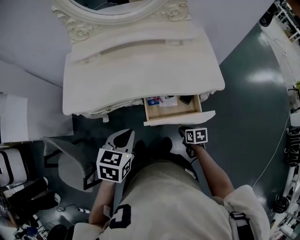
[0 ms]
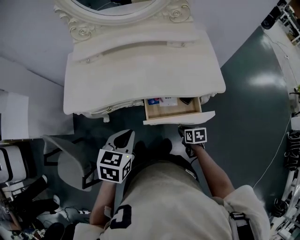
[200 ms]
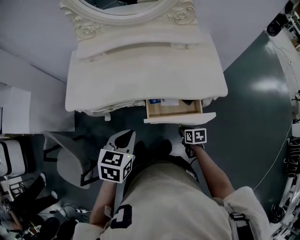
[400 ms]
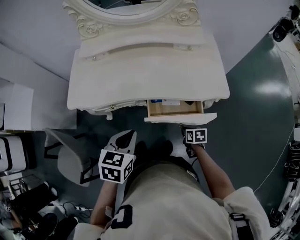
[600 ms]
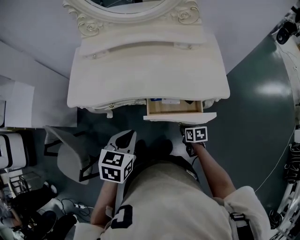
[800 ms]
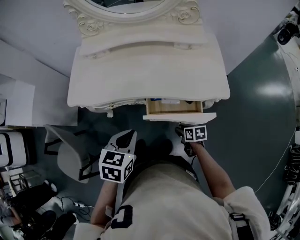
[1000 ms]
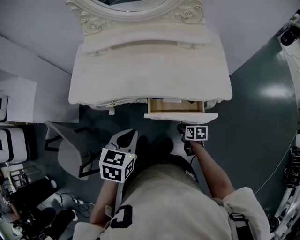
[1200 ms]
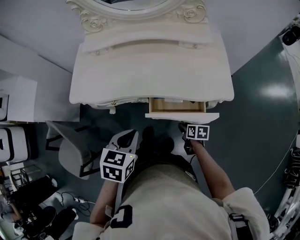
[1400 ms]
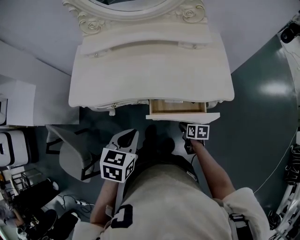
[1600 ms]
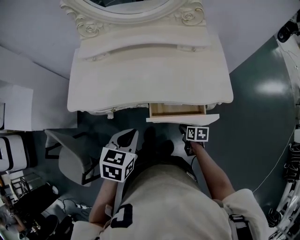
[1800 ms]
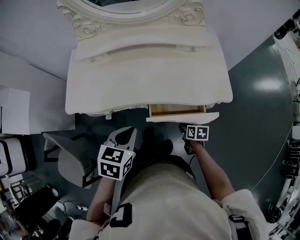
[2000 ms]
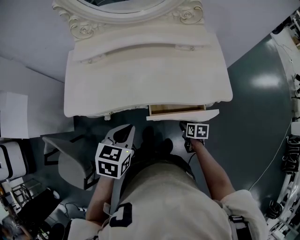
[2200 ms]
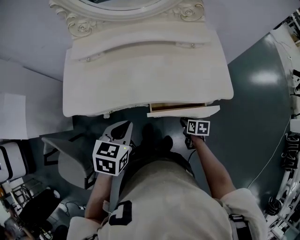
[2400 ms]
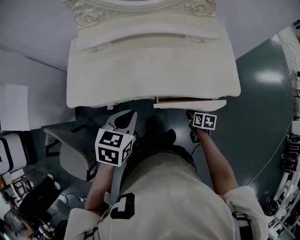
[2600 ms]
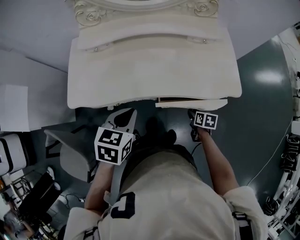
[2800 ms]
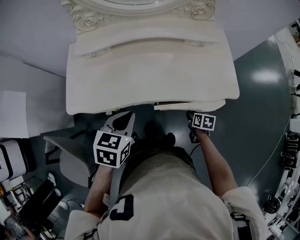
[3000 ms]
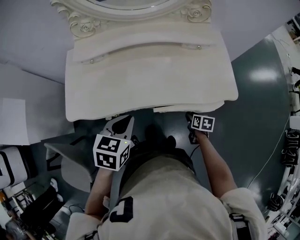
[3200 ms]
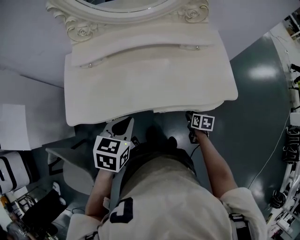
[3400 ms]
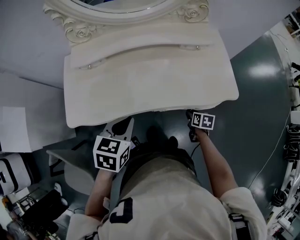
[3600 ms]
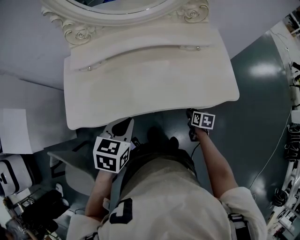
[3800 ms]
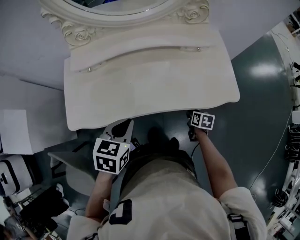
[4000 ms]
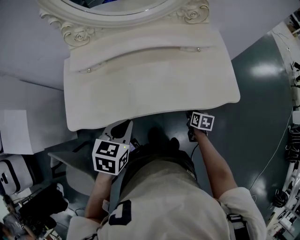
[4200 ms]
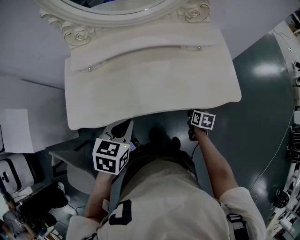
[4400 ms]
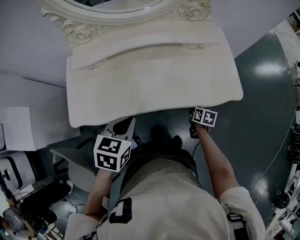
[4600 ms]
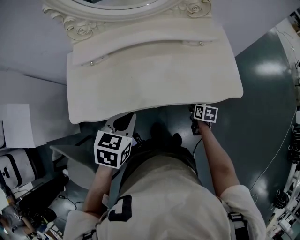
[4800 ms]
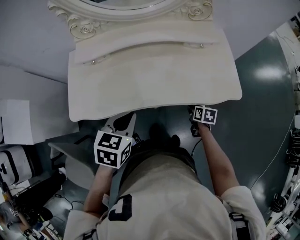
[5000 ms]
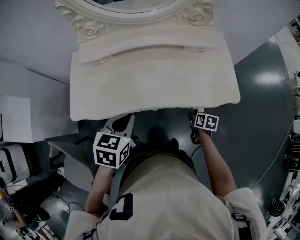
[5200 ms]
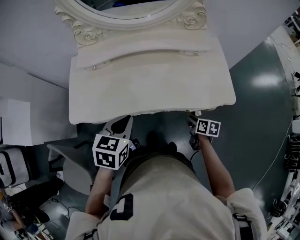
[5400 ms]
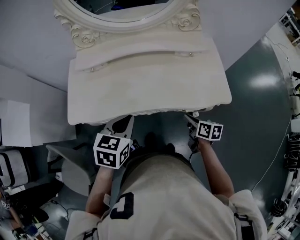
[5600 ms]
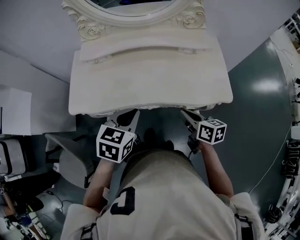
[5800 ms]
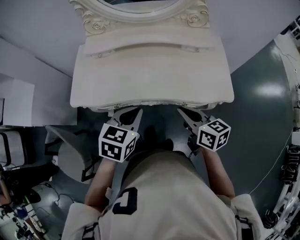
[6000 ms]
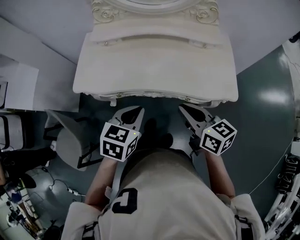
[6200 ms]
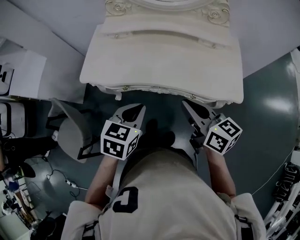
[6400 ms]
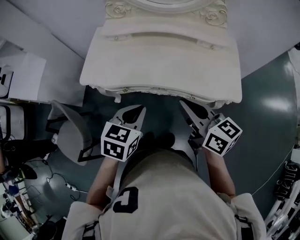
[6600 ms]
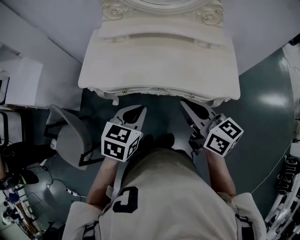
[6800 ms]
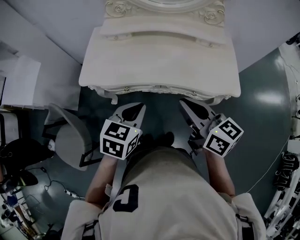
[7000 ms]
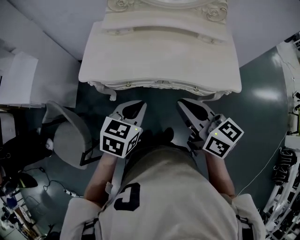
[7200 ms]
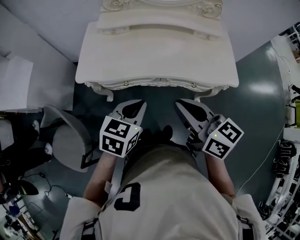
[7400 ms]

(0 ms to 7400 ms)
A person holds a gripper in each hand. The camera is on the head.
0 ms - 1400 ms: The right gripper travels forward by approximately 5 cm.
1400 ms - 3000 ms: The left gripper is displaced forward and to the left by approximately 15 cm; the right gripper is displaced forward by some 5 cm.
3000 ms - 4400 ms: The right gripper shifts some 5 cm forward.
4400 ms - 6000 ms: The right gripper goes approximately 25 cm upward, points its fingers approximately 30 degrees further upward, and closes. Meanwhile the left gripper shifts some 10 cm to the right and backward.
6000 ms - 7400 ms: The left gripper travels to the left and backward by approximately 15 cm, while the right gripper is displaced to the left, upward and backward by roughly 20 cm.

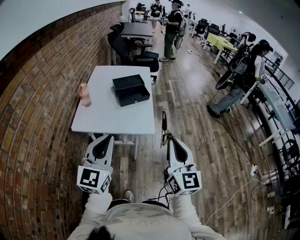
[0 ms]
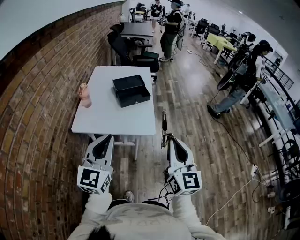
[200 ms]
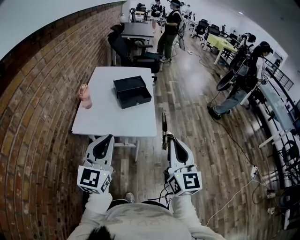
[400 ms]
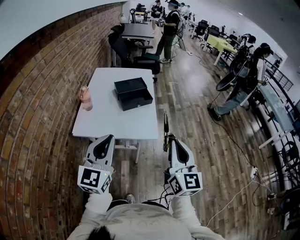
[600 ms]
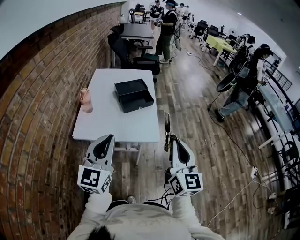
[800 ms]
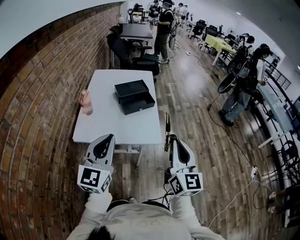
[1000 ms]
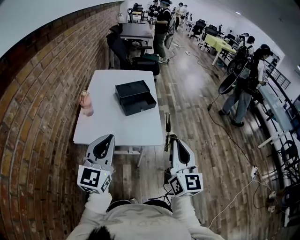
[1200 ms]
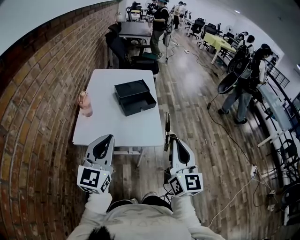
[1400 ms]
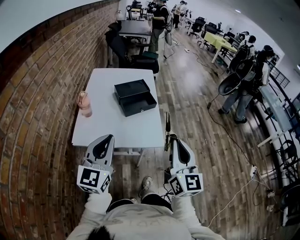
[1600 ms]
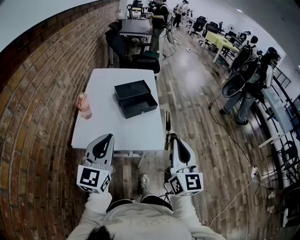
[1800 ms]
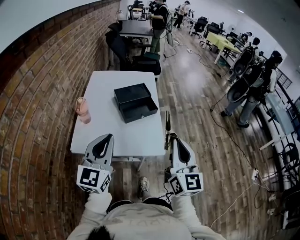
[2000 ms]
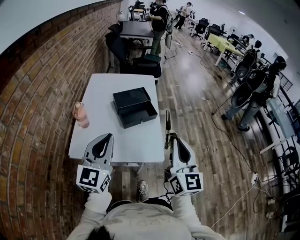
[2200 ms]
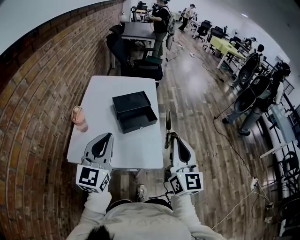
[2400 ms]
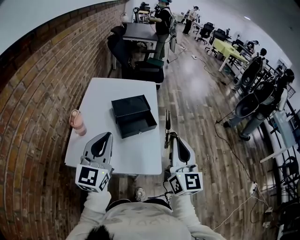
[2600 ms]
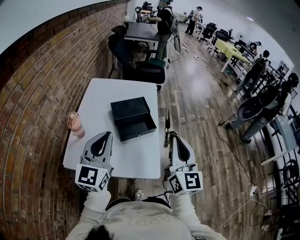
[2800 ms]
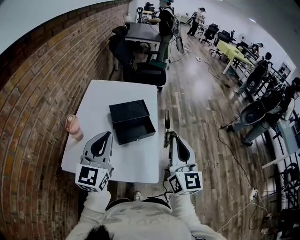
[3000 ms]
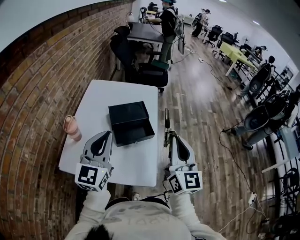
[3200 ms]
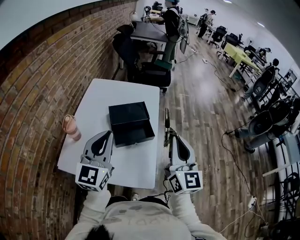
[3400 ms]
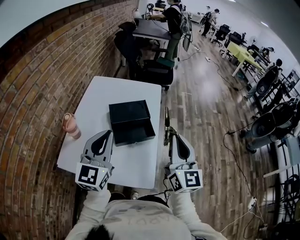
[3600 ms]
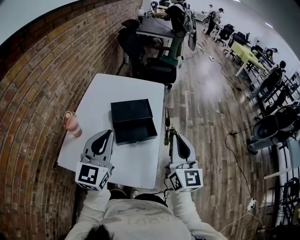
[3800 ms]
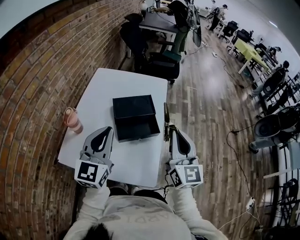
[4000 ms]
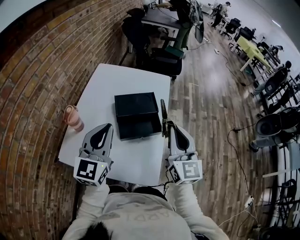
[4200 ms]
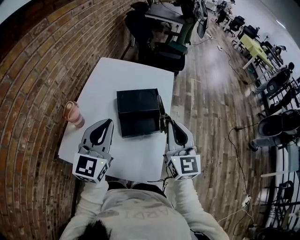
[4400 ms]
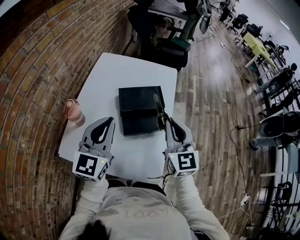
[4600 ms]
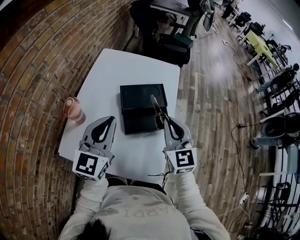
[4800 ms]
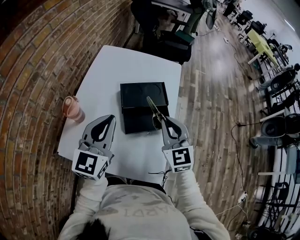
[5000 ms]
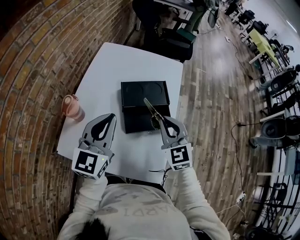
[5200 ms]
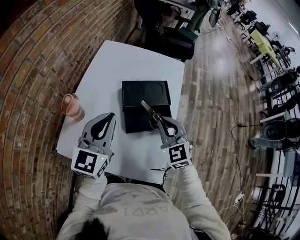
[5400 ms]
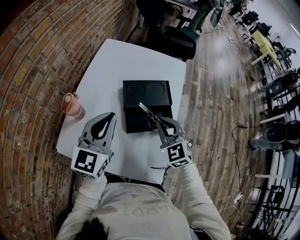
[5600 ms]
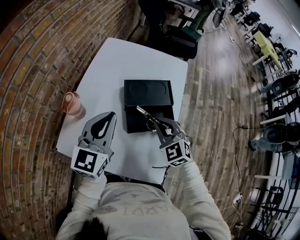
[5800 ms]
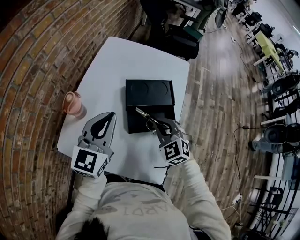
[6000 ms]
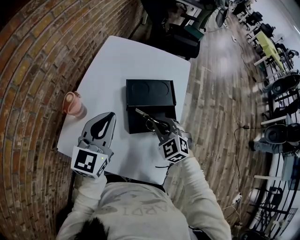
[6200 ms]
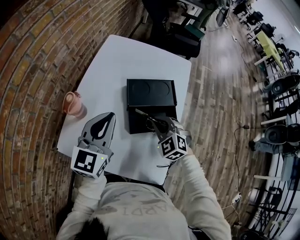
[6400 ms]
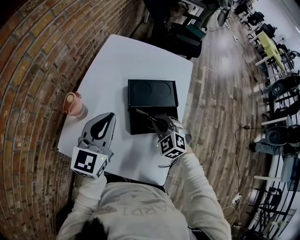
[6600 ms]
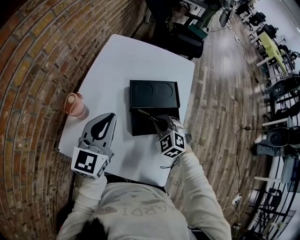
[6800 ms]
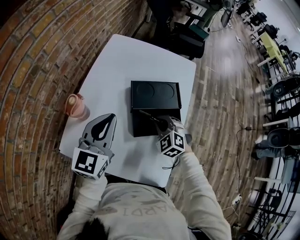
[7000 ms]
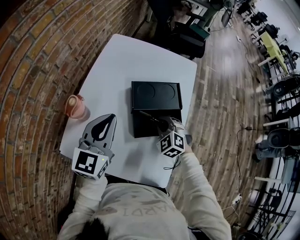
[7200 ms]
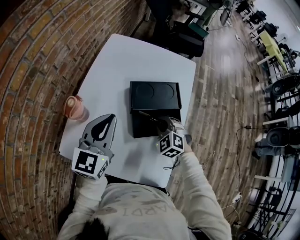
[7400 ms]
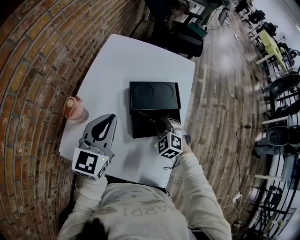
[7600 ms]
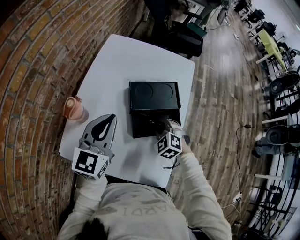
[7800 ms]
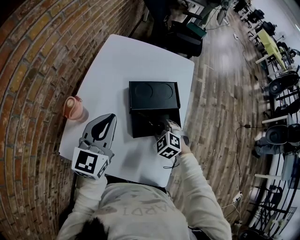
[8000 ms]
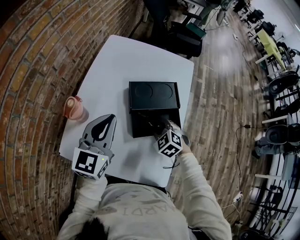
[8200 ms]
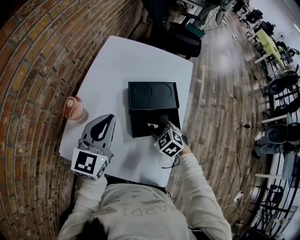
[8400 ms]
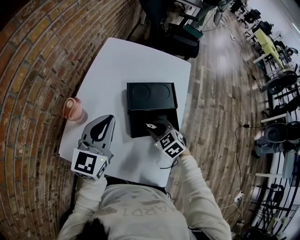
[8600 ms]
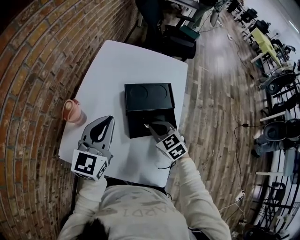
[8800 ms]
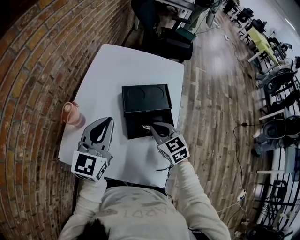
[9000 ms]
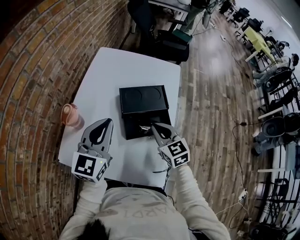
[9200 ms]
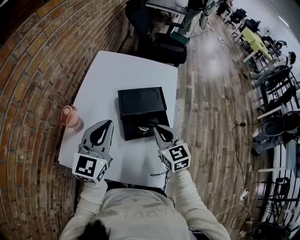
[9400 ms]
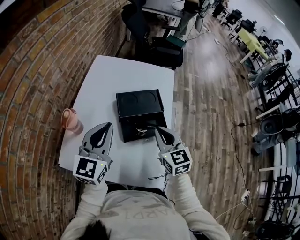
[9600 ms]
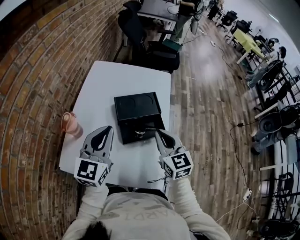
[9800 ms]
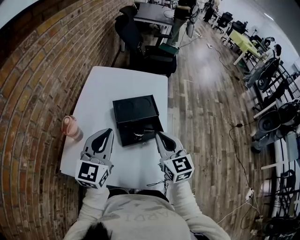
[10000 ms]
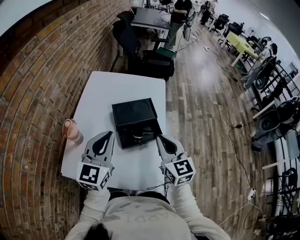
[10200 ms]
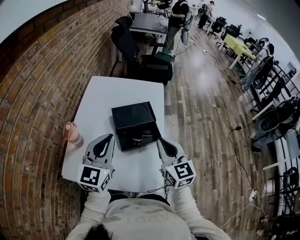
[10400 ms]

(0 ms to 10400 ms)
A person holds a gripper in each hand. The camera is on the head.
0 ms - 1400 ms: The grippers both shift forward and to the left by about 15 cm.
1400 ms - 3000 ms: Both grippers move forward, roughly 25 cm.
3000 ms - 4400 ms: The left gripper heads forward, covering about 10 cm. Meanwhile the right gripper heads forward and downward, covering some 15 cm.
4400 ms - 6000 ms: The right gripper moves downward, to the left and forward, some 20 cm, and points its fingers roughly 30 degrees further downward; the left gripper goes roughly 10 cm forward and downward.
6000 ms - 7400 ms: The right gripper heads downward, covering roughly 10 cm.
7400 ms - 9000 ms: The right gripper moves upward, some 5 cm, rotates roughly 40 degrees, and opens and closes again.
9000 ms - 10400 ms: The left gripper travels backward and upward by about 10 cm; the right gripper heads upward, backward and to the right, covering some 20 cm, and changes its angle by some 30 degrees.

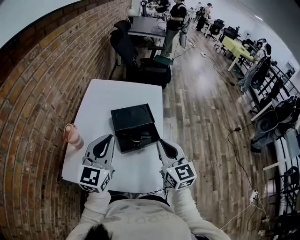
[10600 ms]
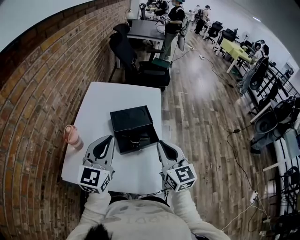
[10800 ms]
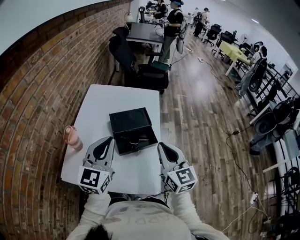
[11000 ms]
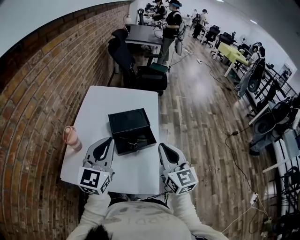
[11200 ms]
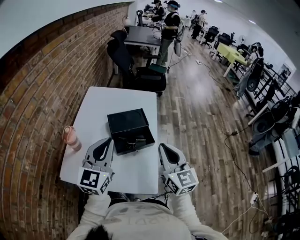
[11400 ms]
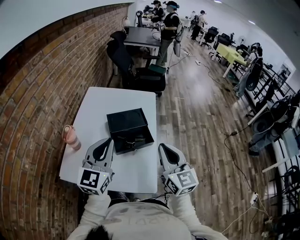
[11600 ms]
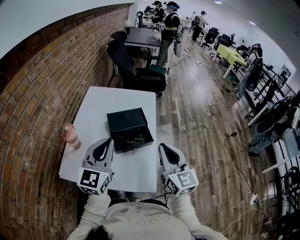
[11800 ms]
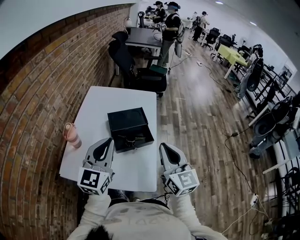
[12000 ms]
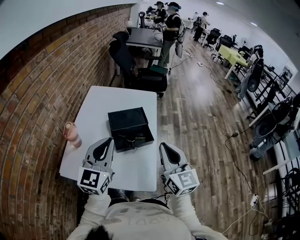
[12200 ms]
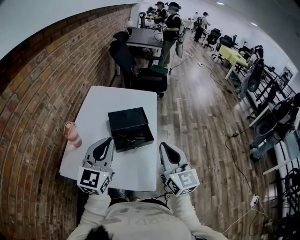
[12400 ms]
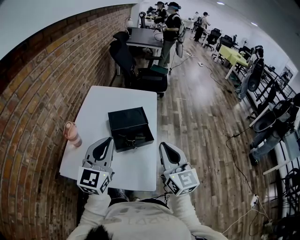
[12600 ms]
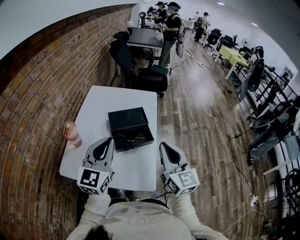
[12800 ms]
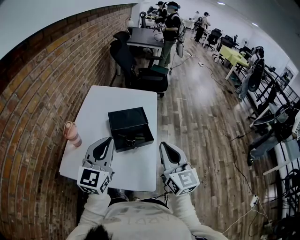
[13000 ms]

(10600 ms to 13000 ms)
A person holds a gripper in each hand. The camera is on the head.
10600 ms - 11800 ms: The grippers both shift backward by some 5 cm.
11800 ms - 13000 ms: Neither gripper changes place.

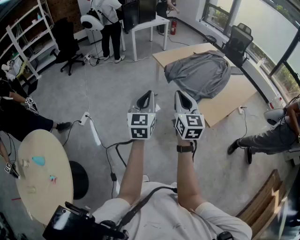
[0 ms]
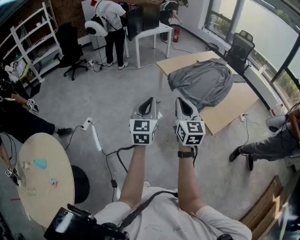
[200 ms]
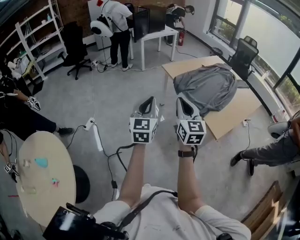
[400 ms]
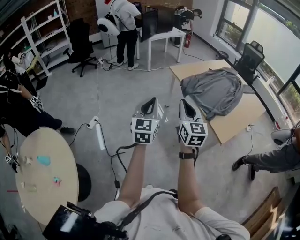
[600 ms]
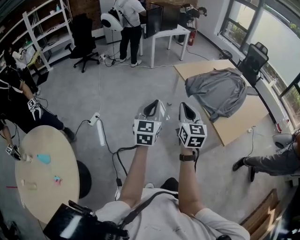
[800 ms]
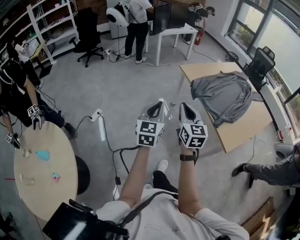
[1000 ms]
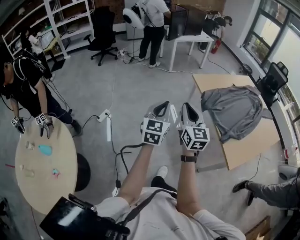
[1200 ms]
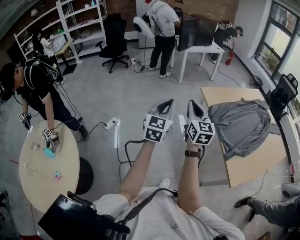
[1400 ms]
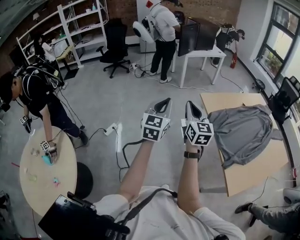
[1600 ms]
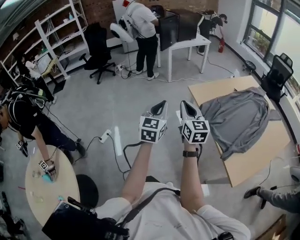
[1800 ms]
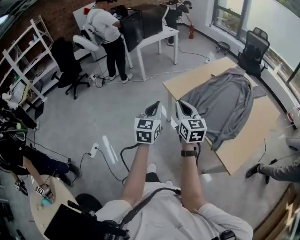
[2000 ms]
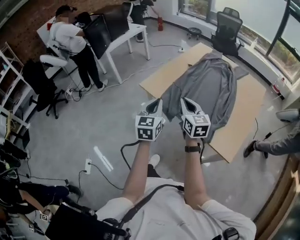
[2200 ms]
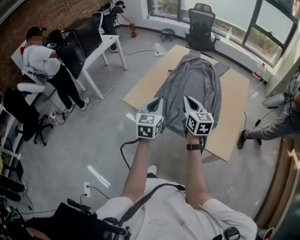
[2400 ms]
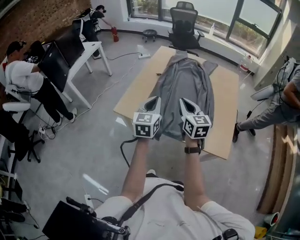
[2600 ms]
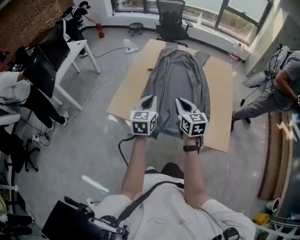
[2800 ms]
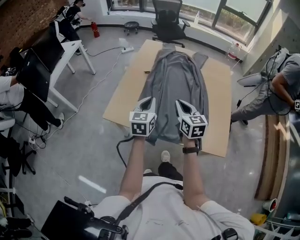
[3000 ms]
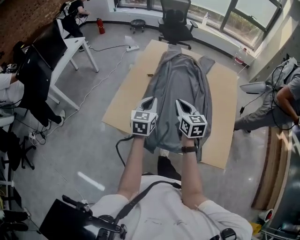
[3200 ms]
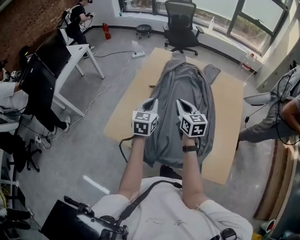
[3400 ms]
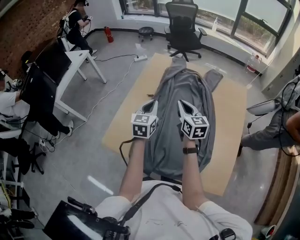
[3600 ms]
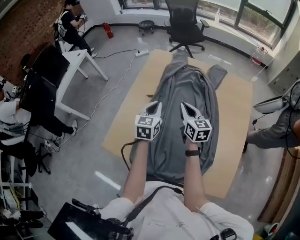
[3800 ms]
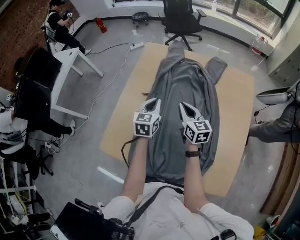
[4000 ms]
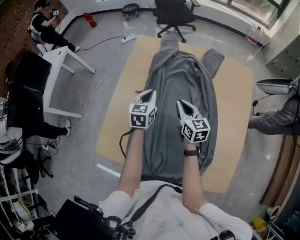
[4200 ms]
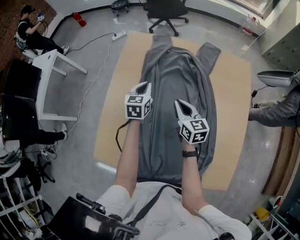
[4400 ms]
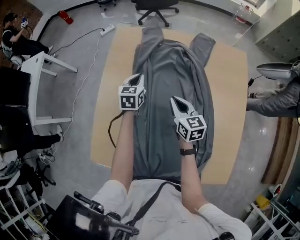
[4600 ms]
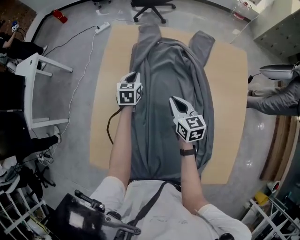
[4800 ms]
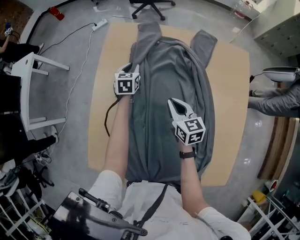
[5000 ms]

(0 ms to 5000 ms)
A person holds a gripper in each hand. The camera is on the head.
0 ms - 1600 ms: Both grippers travel together forward and to the left, some 30 cm.
1600 ms - 3400 ms: The two grippers travel together, some 60 cm. The right gripper changes its angle by roughly 50 degrees; the left gripper turns by about 50 degrees.
3400 ms - 5000 ms: The right gripper shifts some 25 cm forward, downward and to the right; the left gripper heads forward and downward, covering some 40 cm, rotates roughly 20 degrees, and opens up.
